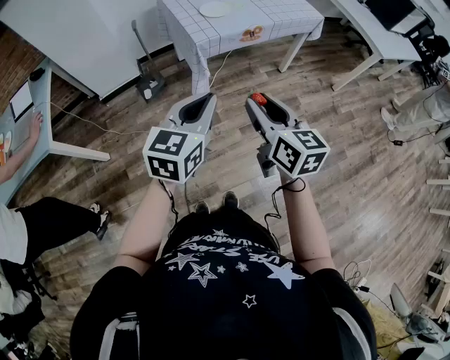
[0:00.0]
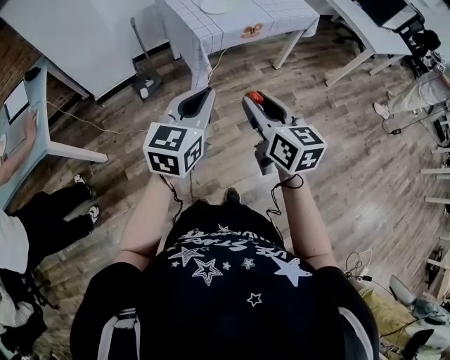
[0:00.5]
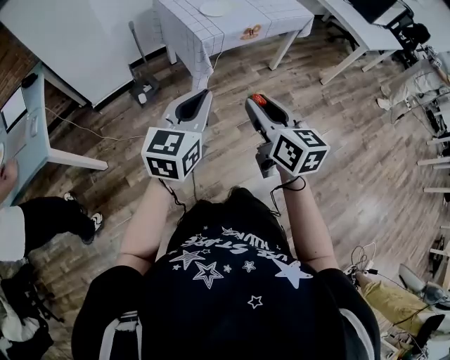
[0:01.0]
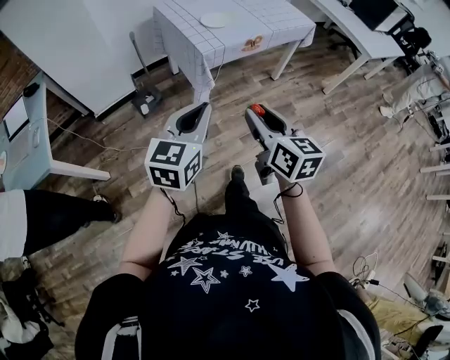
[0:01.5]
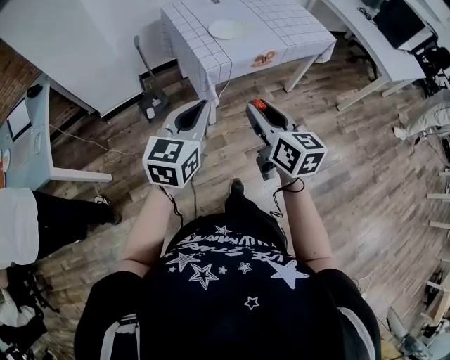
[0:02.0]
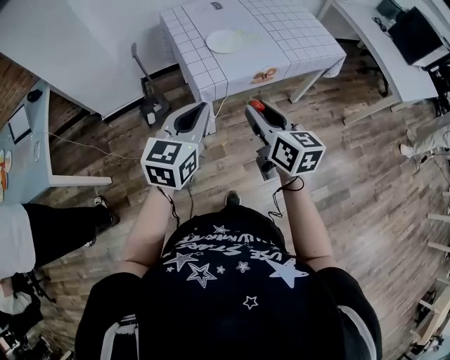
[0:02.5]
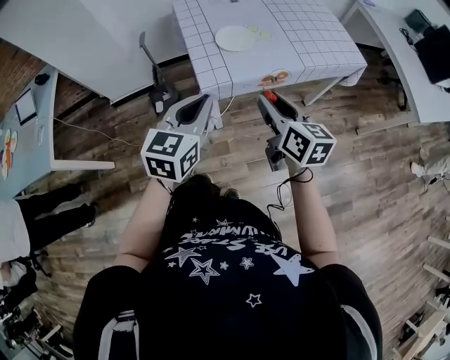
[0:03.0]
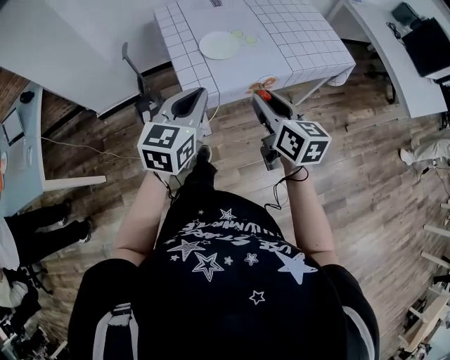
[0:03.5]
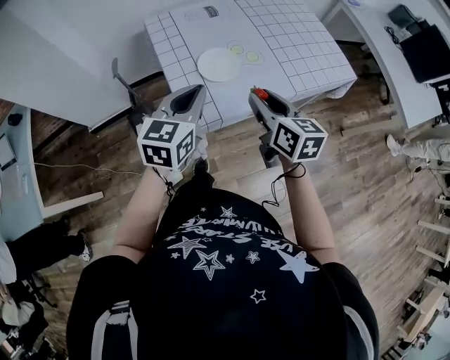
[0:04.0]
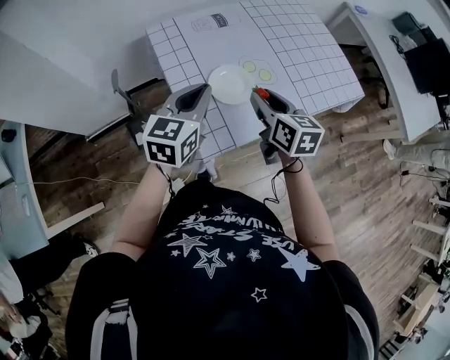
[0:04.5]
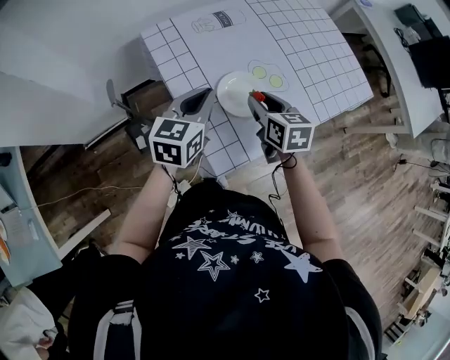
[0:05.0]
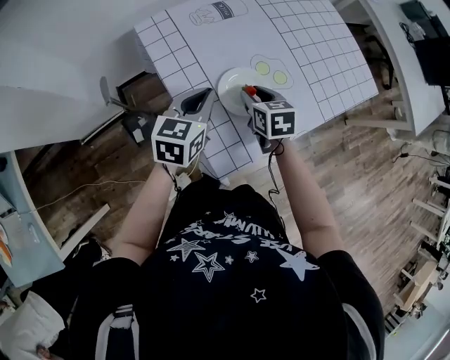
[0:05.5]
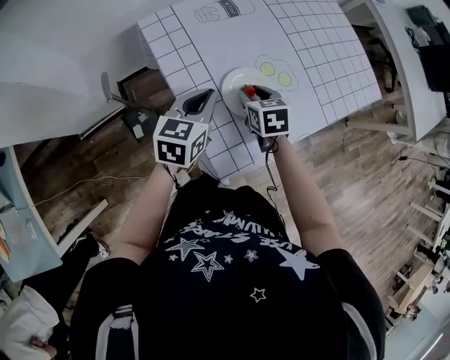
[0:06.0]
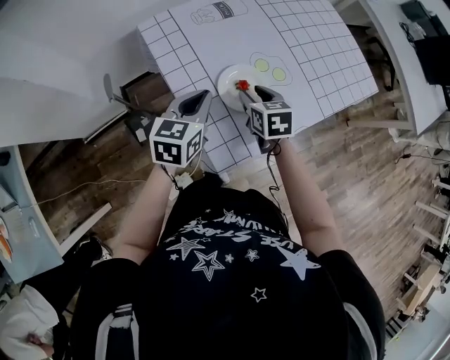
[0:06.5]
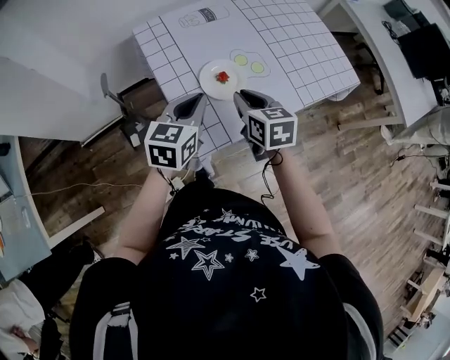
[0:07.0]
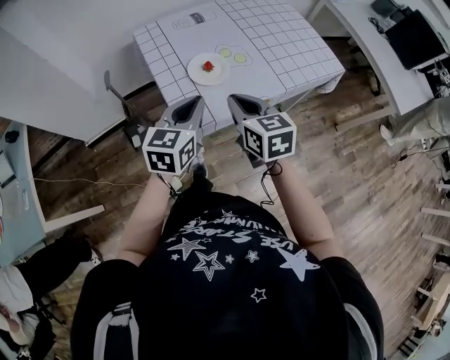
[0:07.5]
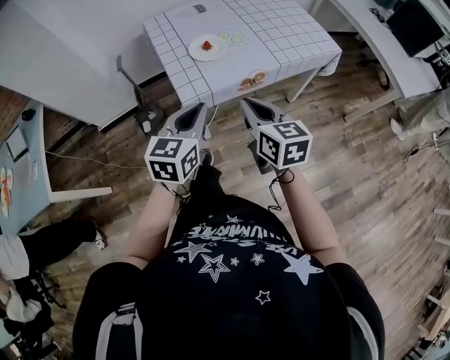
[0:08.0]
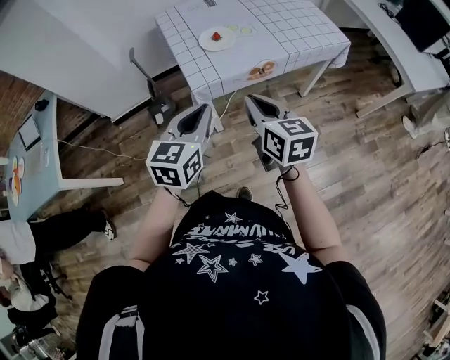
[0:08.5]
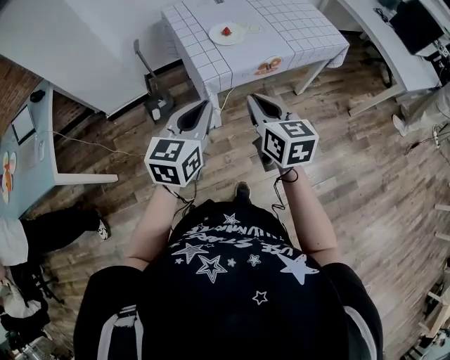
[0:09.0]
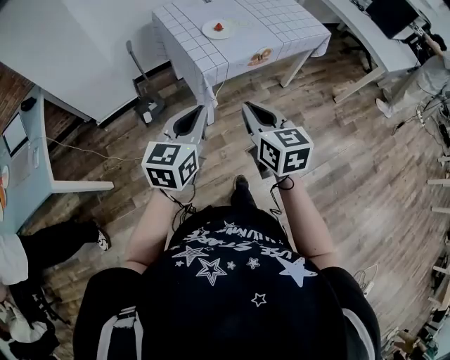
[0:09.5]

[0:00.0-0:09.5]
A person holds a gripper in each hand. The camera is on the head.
0:00.0 to 0:02.0: The left gripper heads forward and to the left, covering about 15 cm. Meanwhile the right gripper travels forward by roughly 15 cm.
0:02.0 to 0:04.0: The two grippers go about 35 cm forward.
0:04.0 to 0:05.5: The grippers both shift forward, downward and to the left by roughly 25 cm. The right gripper turns by about 30 degrees.
0:05.5 to 0:07.5: The right gripper travels backward and upward by about 25 cm, changes its angle by approximately 20 degrees, and closes its fingers. The left gripper heads backward, to the right and upward, covering about 25 cm.
0:07.5 to 0:09.5: The grippers both shift backward by approximately 25 cm.

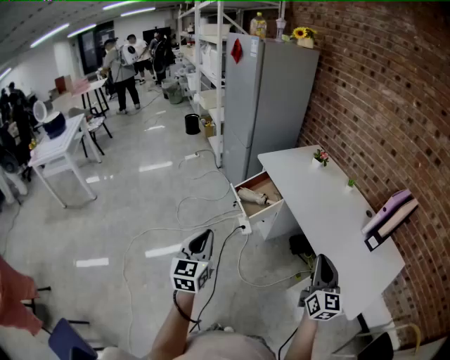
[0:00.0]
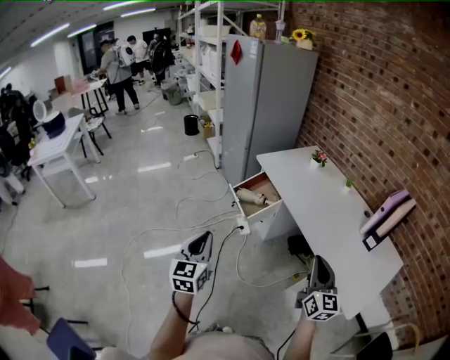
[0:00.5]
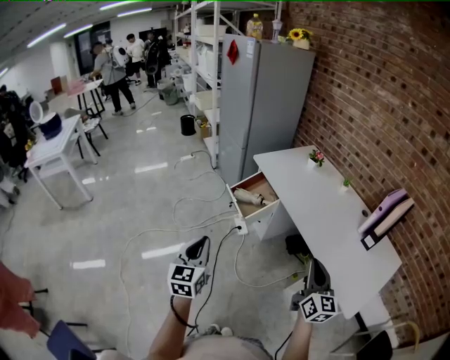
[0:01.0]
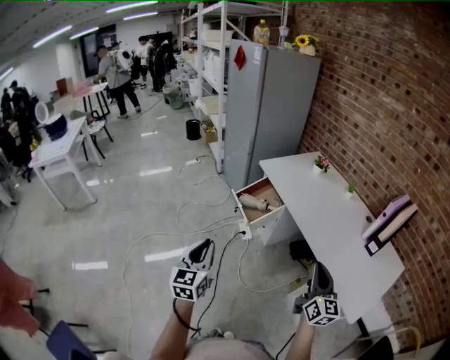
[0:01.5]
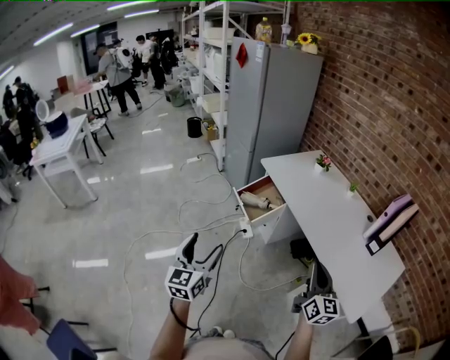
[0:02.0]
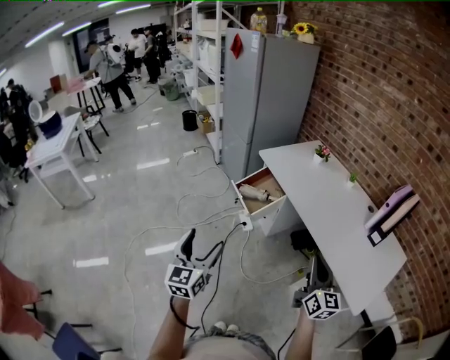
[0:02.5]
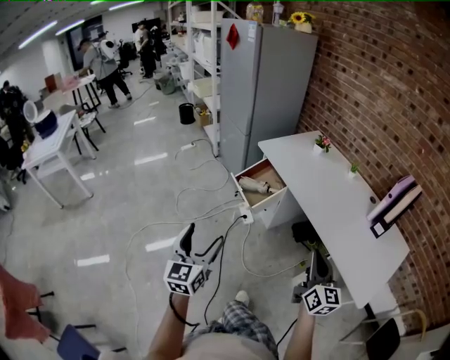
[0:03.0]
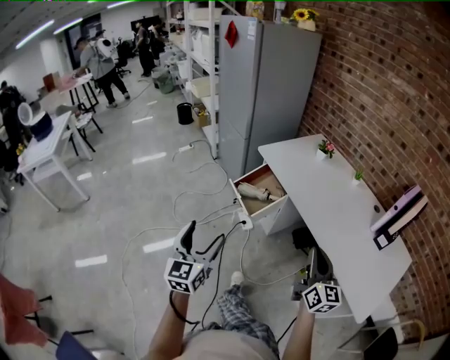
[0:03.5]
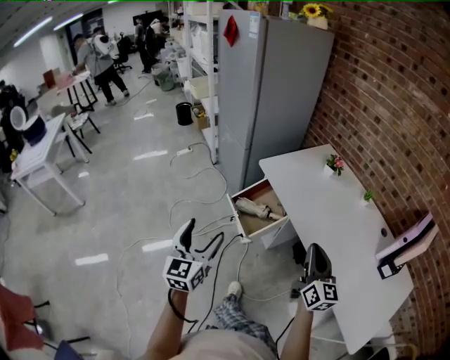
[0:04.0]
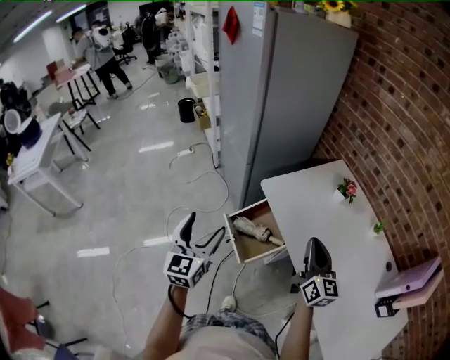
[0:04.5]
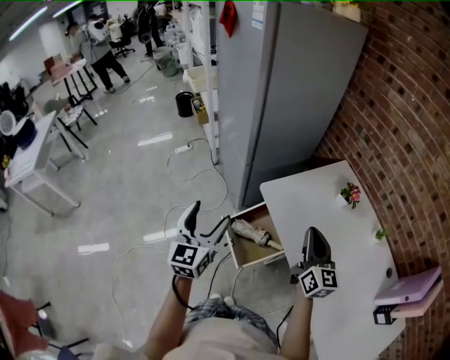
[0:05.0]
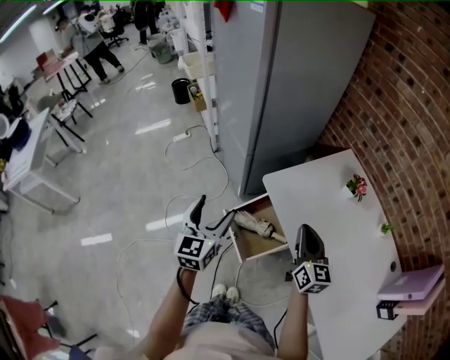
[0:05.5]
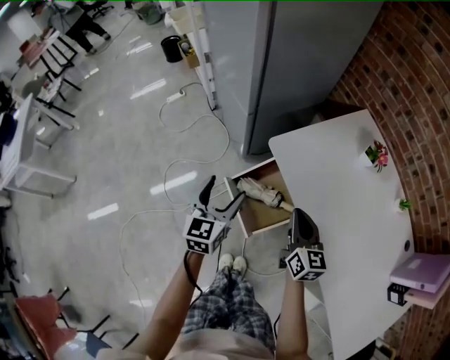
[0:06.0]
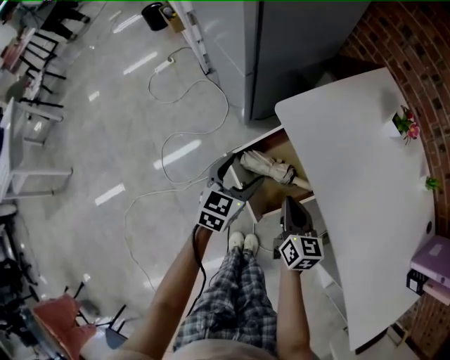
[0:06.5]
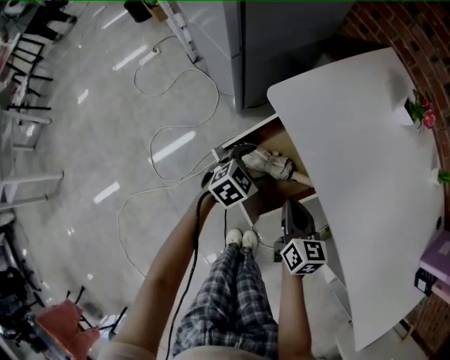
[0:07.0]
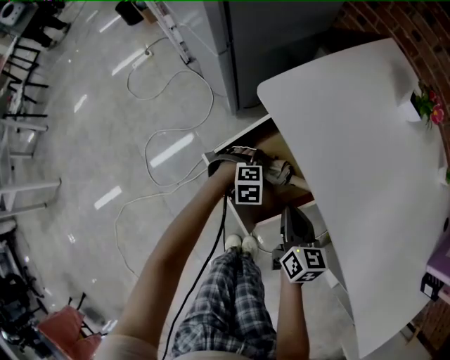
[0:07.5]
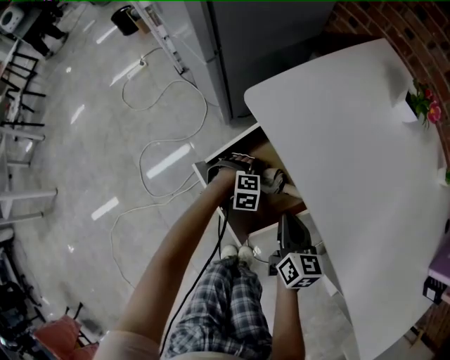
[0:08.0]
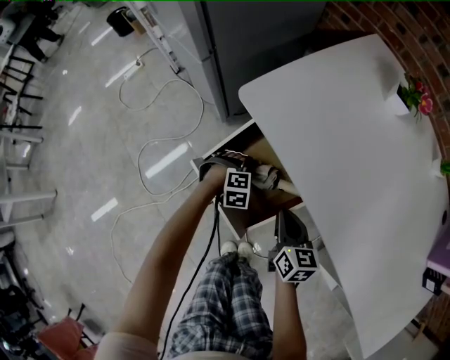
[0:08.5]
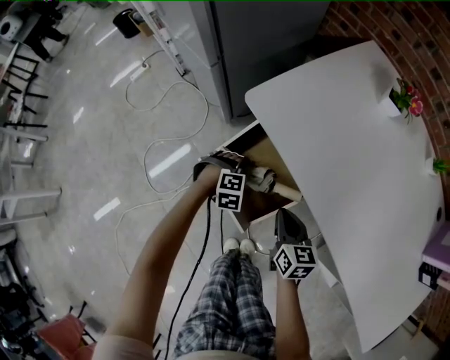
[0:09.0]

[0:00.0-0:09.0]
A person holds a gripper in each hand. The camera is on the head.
0:00.0 to 0:02.0: The left gripper opens its fingers.
0:02.0 to 0:04.5: The pair of grippers is taken forward, some 50 cm.
0:04.5 to 0:07.0: The grippers both shift downward by some 40 cm. The right gripper changes its angle by approximately 30 degrees, while the left gripper tilts its fingers roughly 40 degrees downward.
0:07.0 to 0:09.0: The left gripper heads downward, covering about 10 cm, and rolls clockwise, seen from behind, by some 50 degrees.

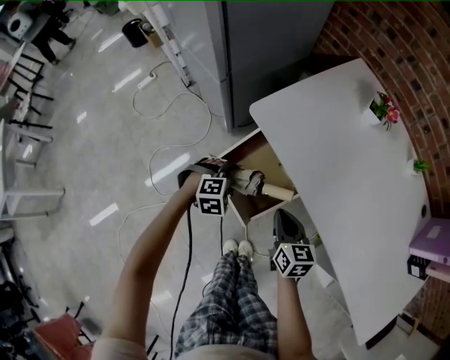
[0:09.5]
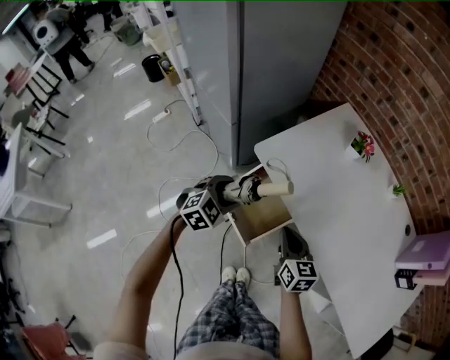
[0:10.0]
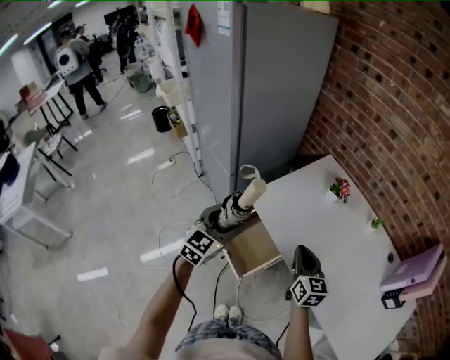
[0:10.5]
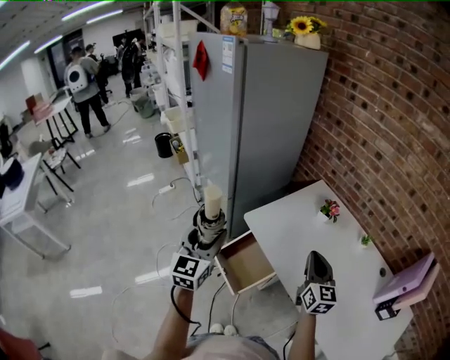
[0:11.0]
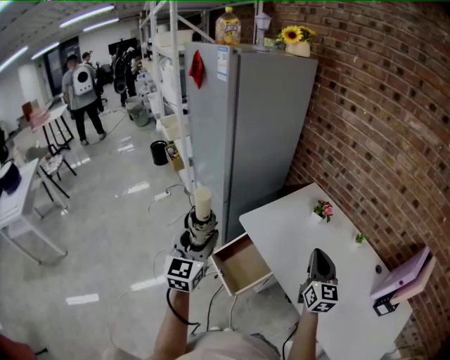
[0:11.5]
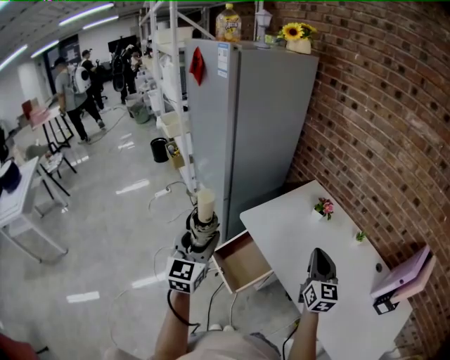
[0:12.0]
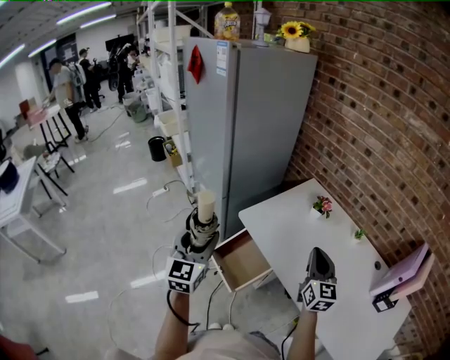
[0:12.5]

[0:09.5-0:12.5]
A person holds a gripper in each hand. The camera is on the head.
0:09.5 to 0:11.0: The two grippers go some 40 cm upward. The left gripper points its fingers about 60 degrees further upward. The right gripper swivels about 30 degrees.
0:11.0 to 0:12.5: The grippers make only small movements.

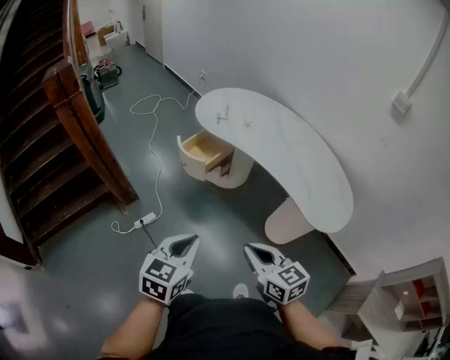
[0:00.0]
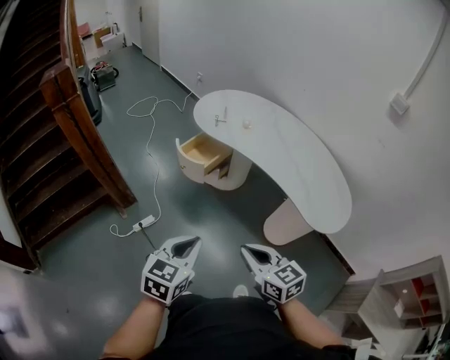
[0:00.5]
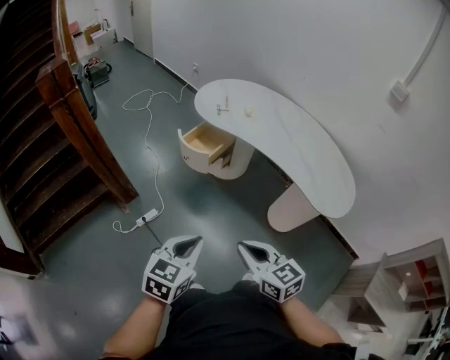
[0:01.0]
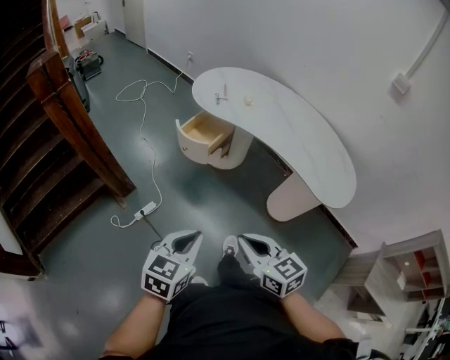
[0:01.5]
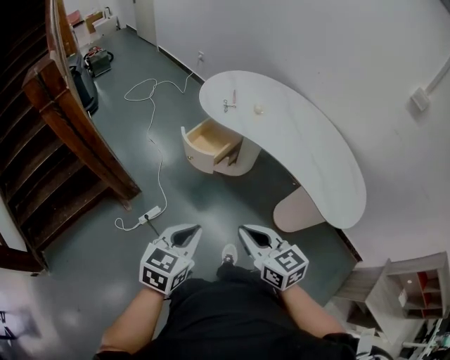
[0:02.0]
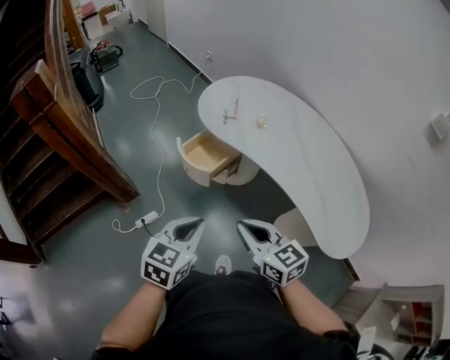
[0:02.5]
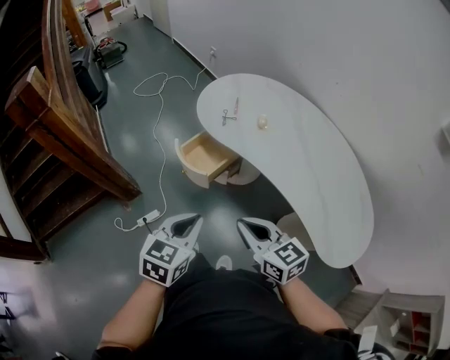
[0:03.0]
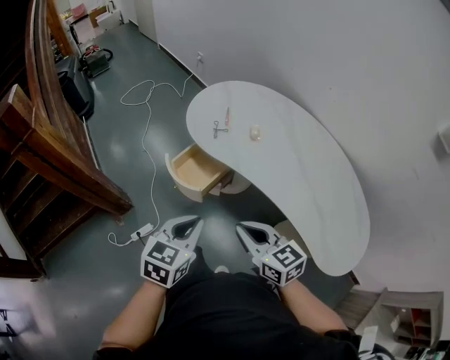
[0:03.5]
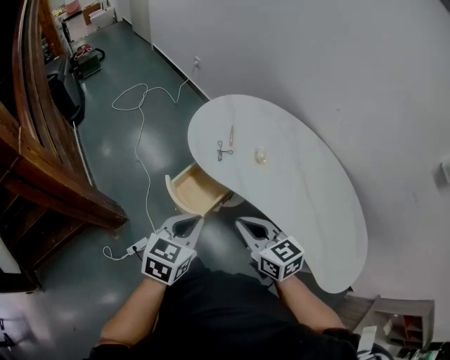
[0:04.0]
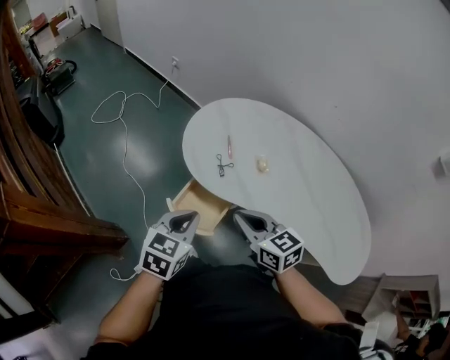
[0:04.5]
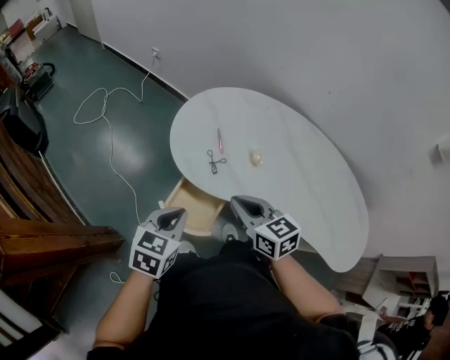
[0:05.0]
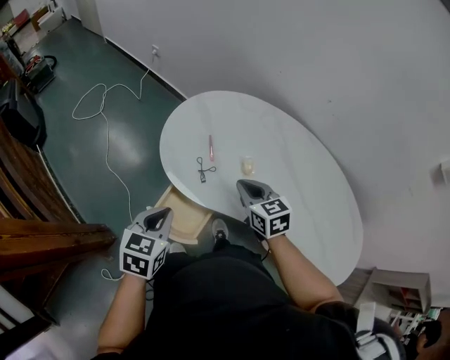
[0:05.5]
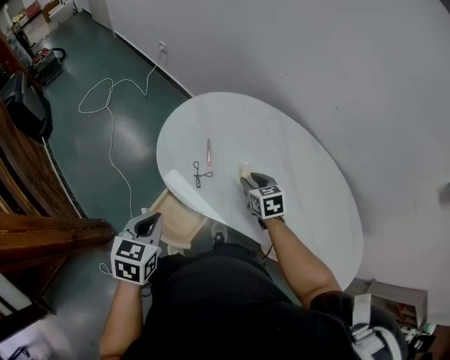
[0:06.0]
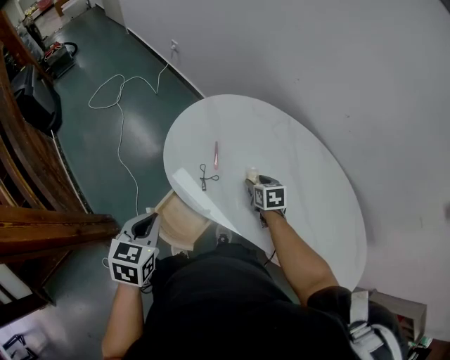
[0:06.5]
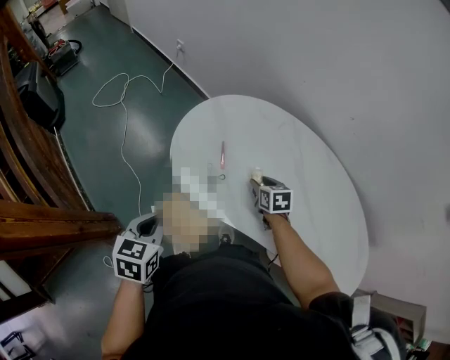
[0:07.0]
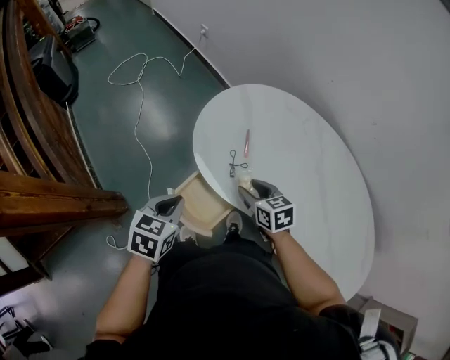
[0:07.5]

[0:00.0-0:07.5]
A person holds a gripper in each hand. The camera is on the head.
0:00.0 to 0:02.0: Both grippers travel together forward and to the left, approximately 10 cm.
0:02.0 to 0:04.0: The two grippers go about 35 cm forward.
0:04.0 to 0:05.5: The left gripper heads forward and to the left, covering some 20 cm, while the right gripper travels forward by some 25 cm, and turns by roughly 20 degrees.
0:05.5 to 0:07.5: The left gripper changes place by about 5 cm, while the right gripper travels downward and to the left by approximately 10 cm, and opens.
